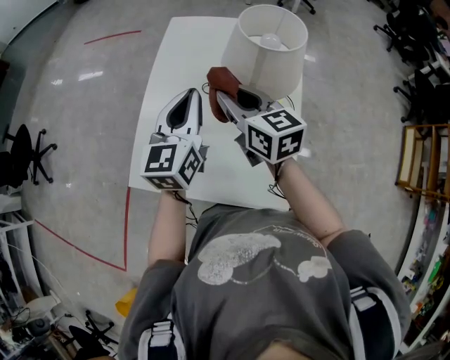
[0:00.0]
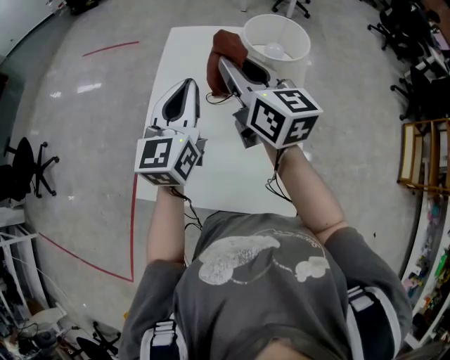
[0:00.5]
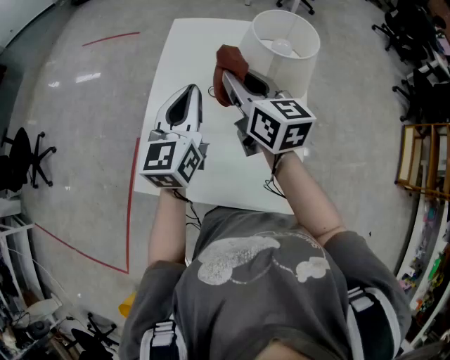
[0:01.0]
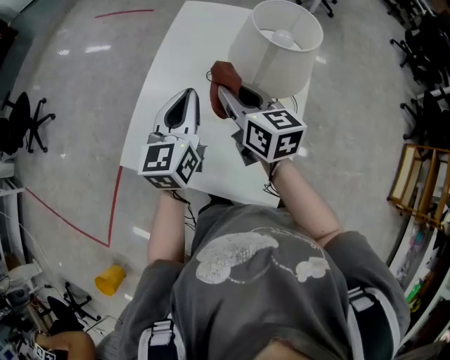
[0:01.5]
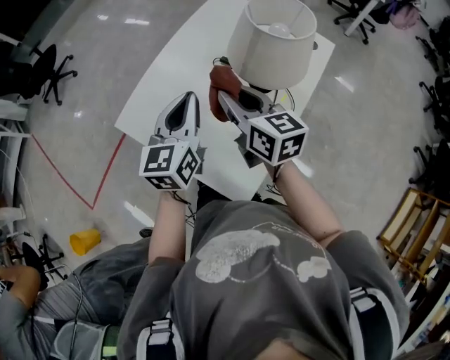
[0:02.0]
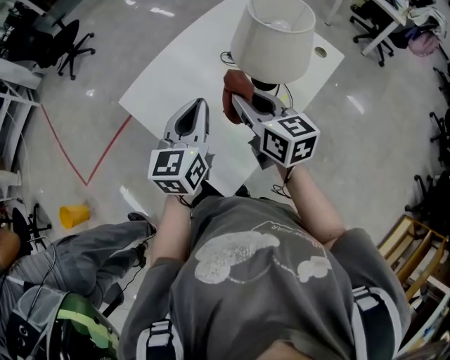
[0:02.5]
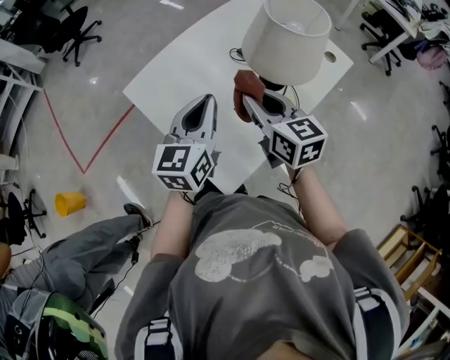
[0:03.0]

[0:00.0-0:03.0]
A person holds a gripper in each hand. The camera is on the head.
0:00.0 to 0:01.5: The right gripper goes upward and returns, some 10 cm each way.
0:01.5 to 0:03.0: The left gripper shifts by some 15 cm, and rotates about 20 degrees. Meanwhile the right gripper ends up about 10 cm from where it was, and rotates about 30 degrees.

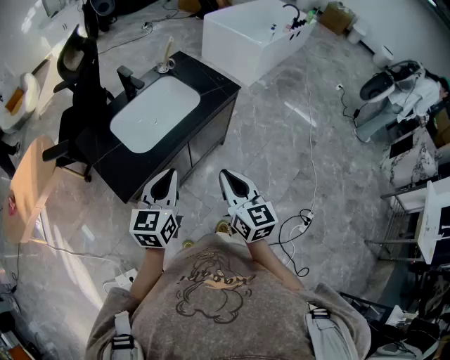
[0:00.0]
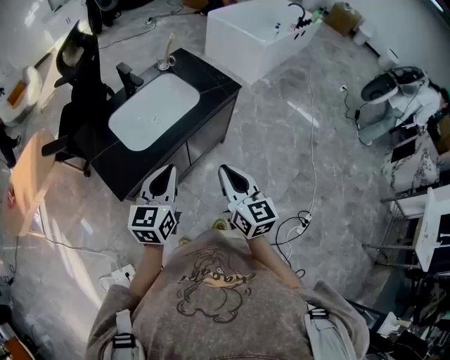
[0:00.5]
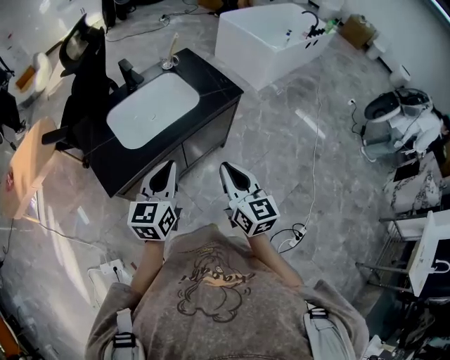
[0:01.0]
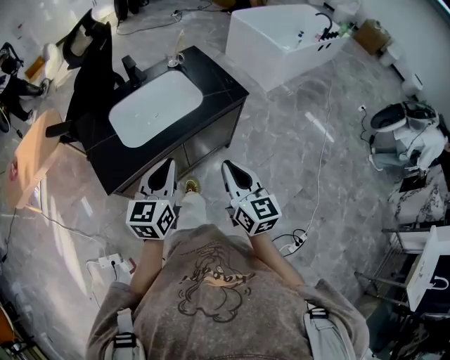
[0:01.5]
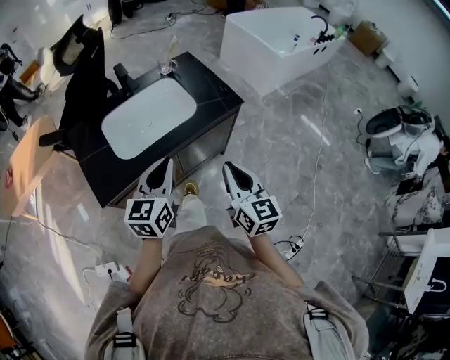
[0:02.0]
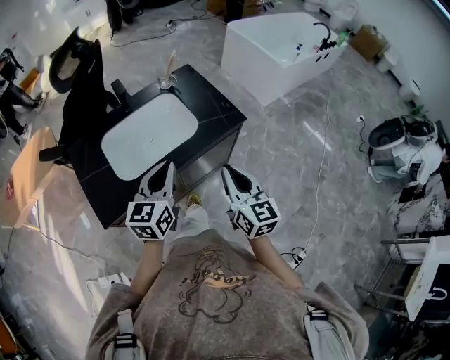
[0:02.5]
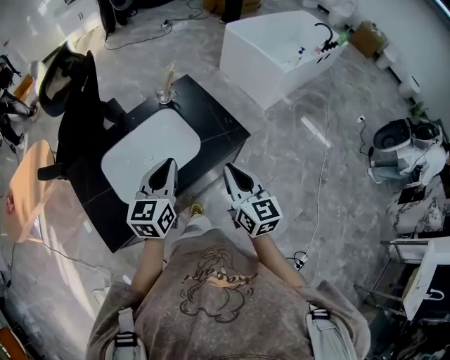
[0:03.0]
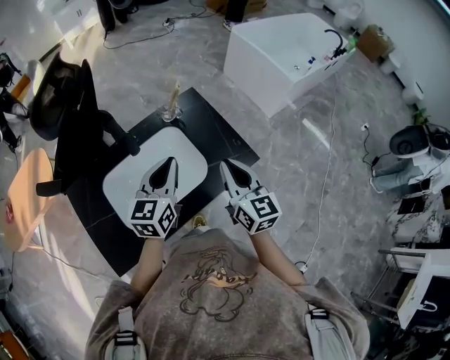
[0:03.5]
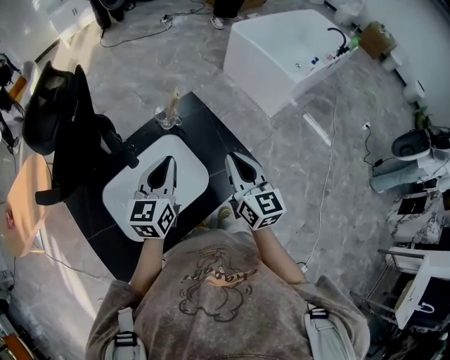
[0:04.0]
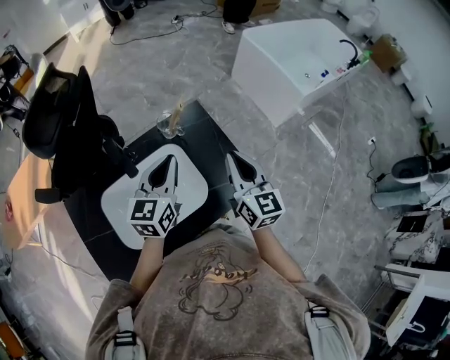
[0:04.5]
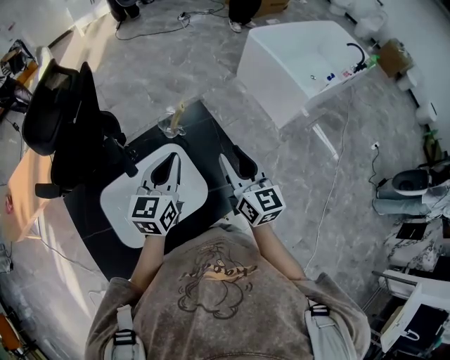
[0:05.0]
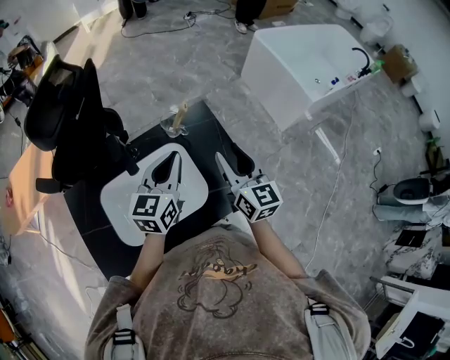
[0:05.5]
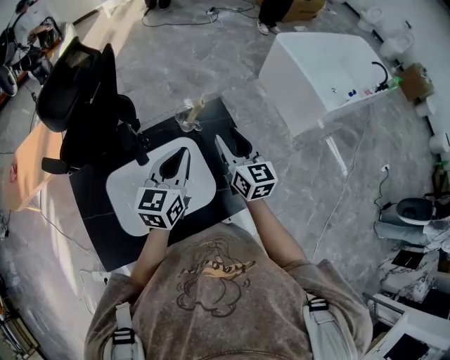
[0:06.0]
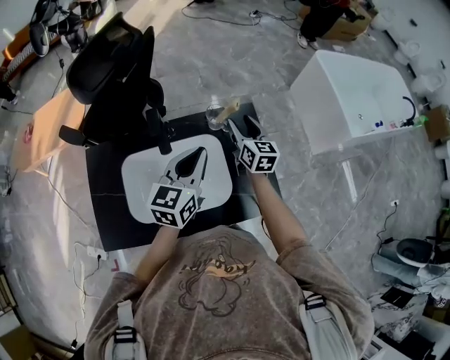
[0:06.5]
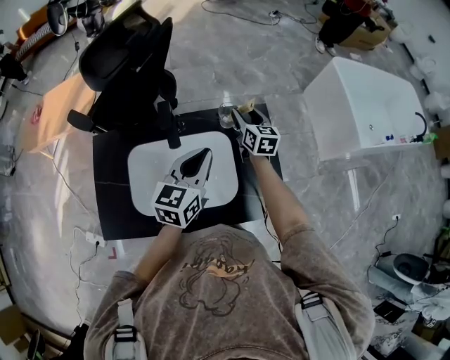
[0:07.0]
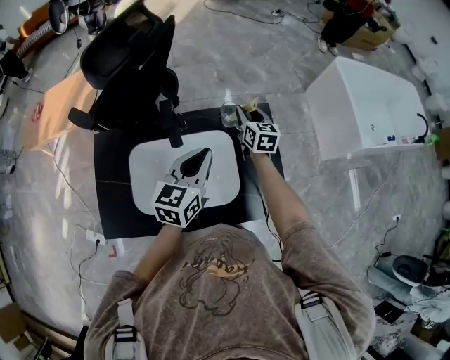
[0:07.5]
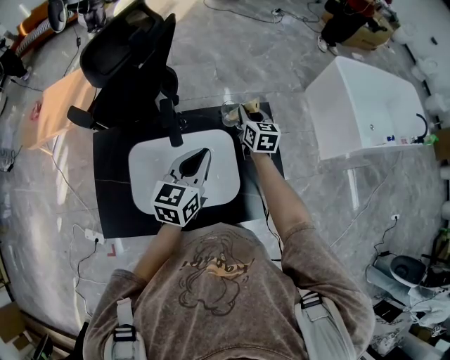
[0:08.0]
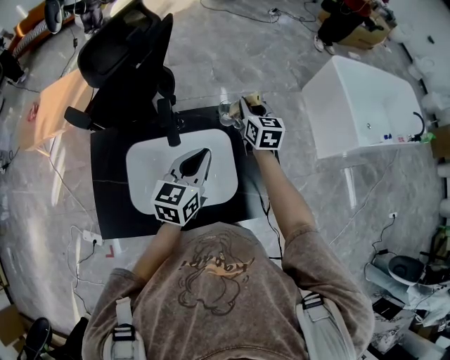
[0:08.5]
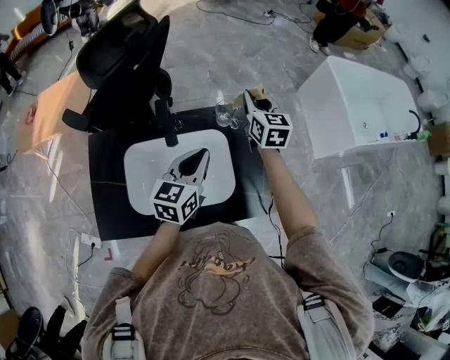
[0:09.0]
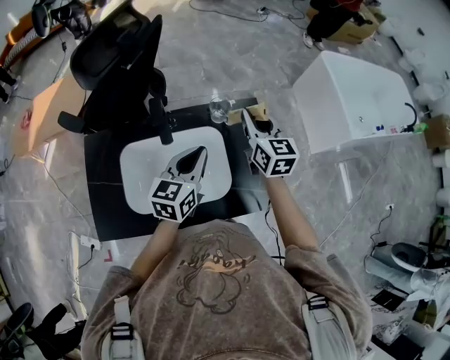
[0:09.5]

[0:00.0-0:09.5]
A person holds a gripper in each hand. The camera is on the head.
0:00.0 to 0:02.0: The two grippers go about 15 cm forward and to the right.
0:02.0 to 0:04.0: Both grippers travel together forward, about 35 cm.
0:04.0 to 0:05.5: The grippers both shift forward by roughly 10 cm. The right gripper opens up.
0:05.5 to 0:07.5: The left gripper heads to the left, covering approximately 5 cm. The right gripper shifts about 25 cm forward, downward and to the left, and swivels approximately 20 degrees.
0:07.5 to 0:09.5: The right gripper moves upward and backward, some 15 cm.

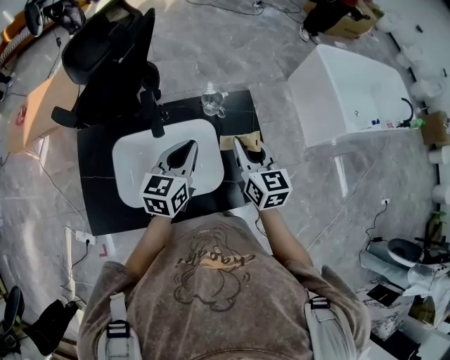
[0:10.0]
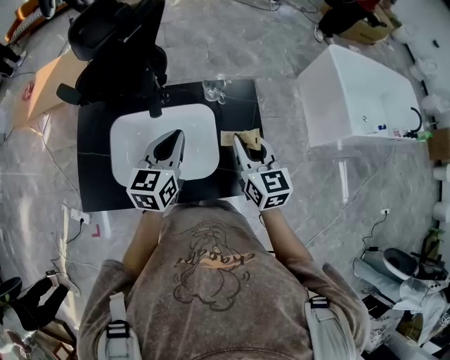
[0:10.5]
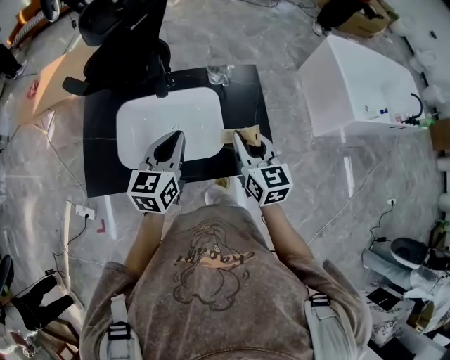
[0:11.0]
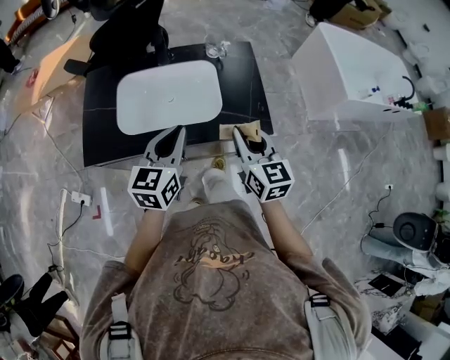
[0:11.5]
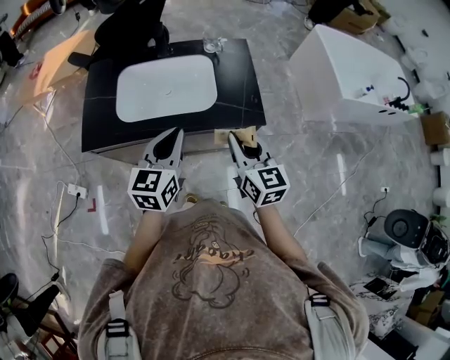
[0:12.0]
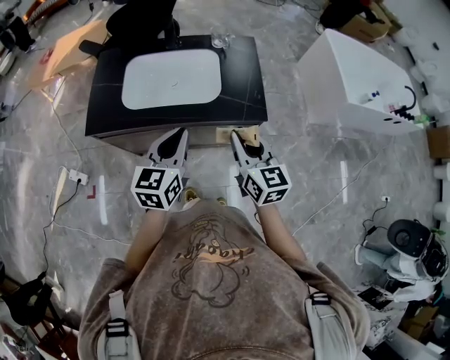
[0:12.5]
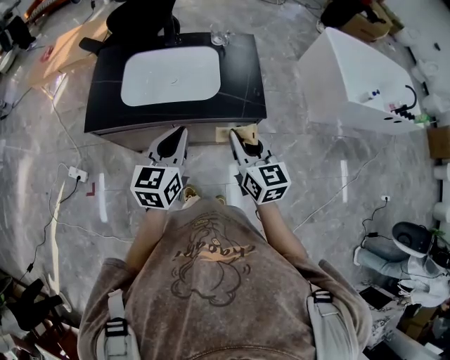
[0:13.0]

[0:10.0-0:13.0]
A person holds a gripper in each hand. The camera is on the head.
0:10.0 to 0:11.5: The grippers both shift backward by approximately 25 cm.
0:11.5 to 0:13.0: The grippers both shift backward by some 10 cm.

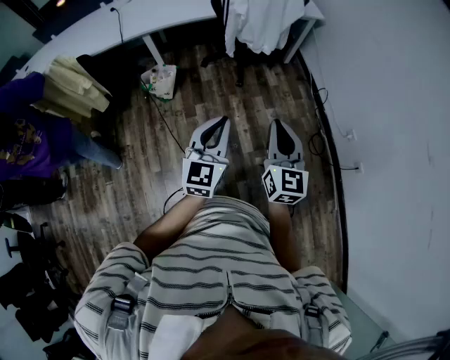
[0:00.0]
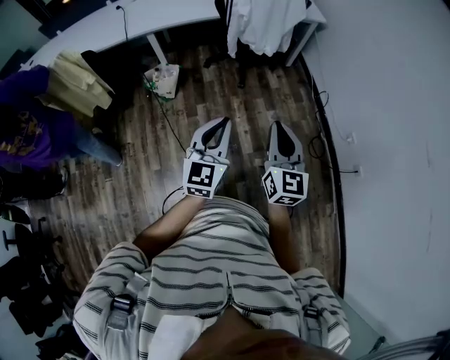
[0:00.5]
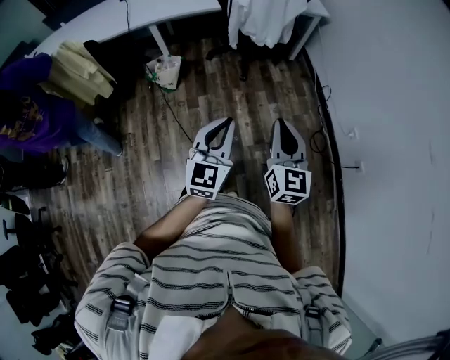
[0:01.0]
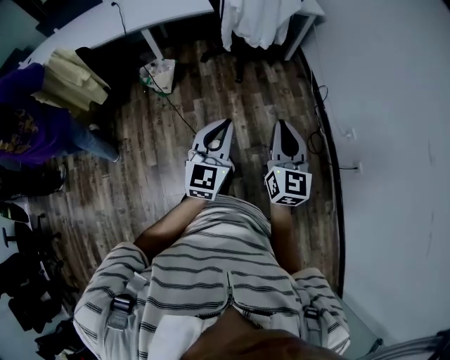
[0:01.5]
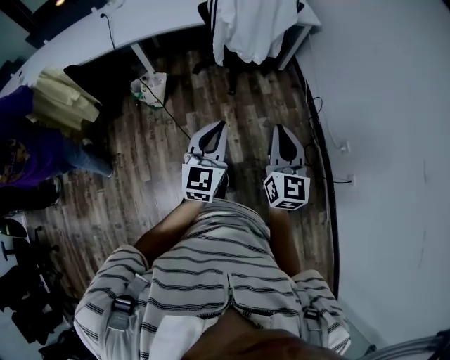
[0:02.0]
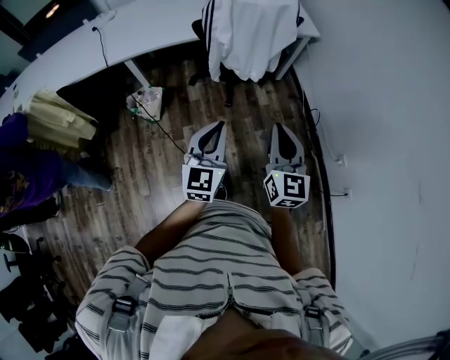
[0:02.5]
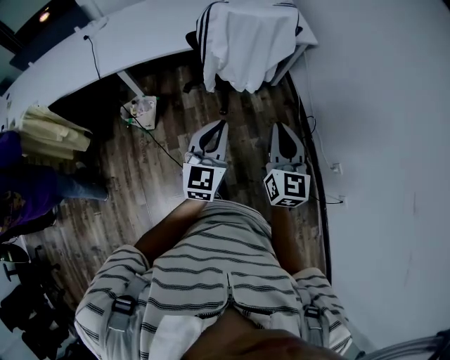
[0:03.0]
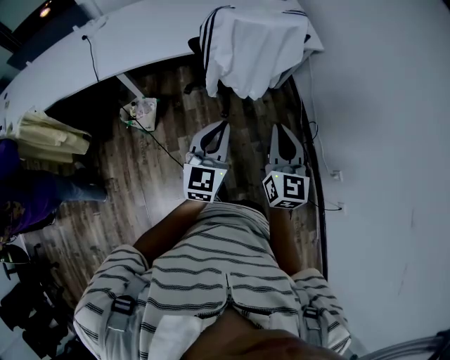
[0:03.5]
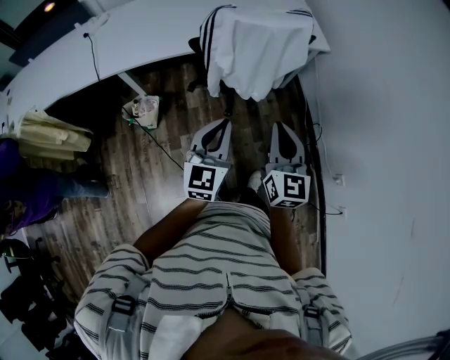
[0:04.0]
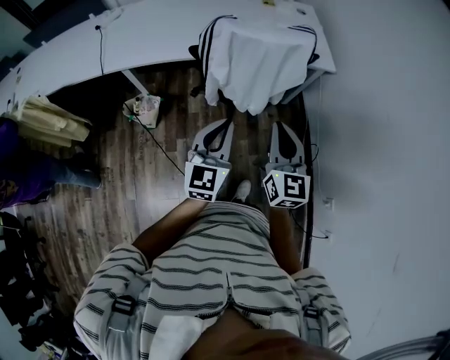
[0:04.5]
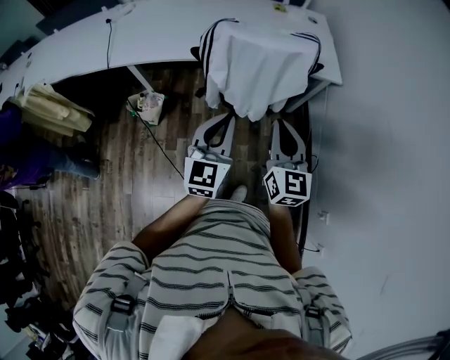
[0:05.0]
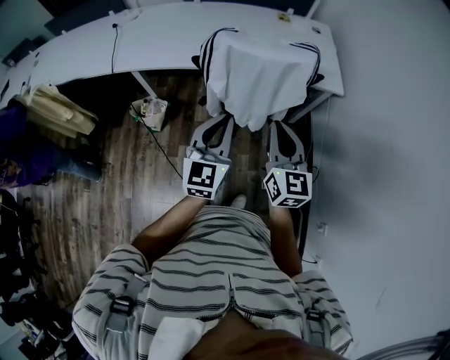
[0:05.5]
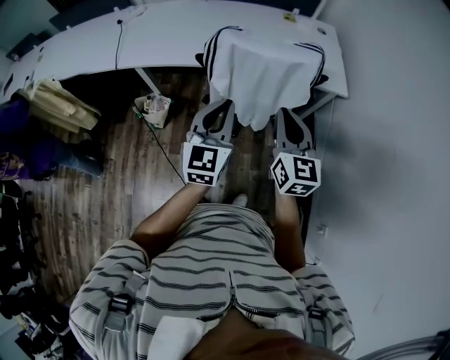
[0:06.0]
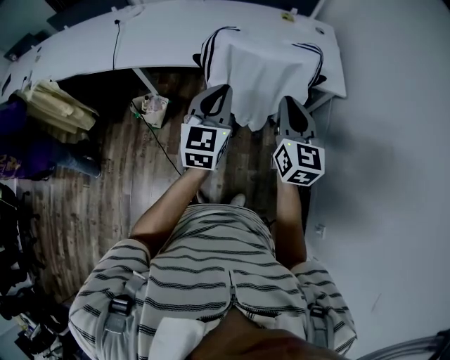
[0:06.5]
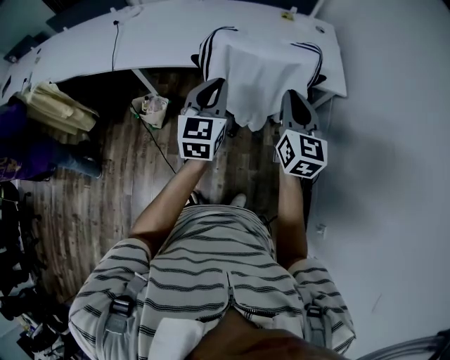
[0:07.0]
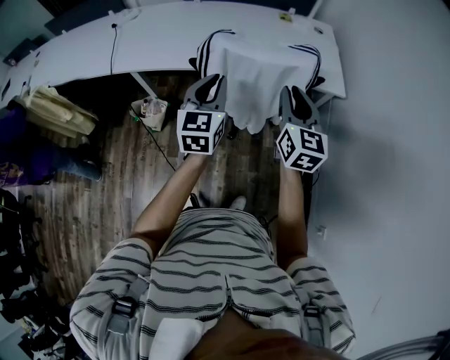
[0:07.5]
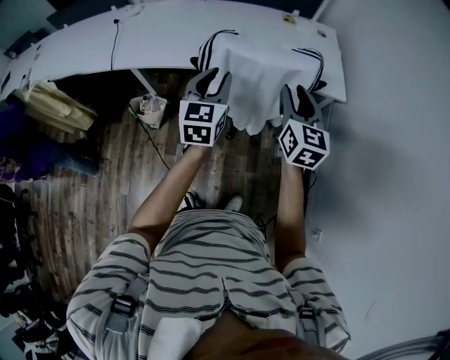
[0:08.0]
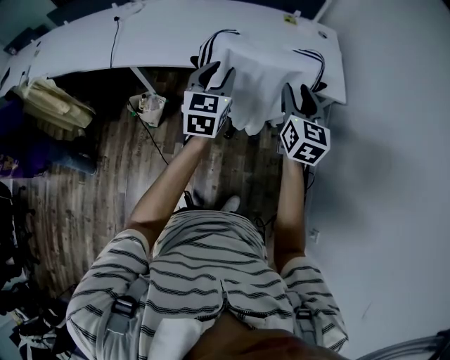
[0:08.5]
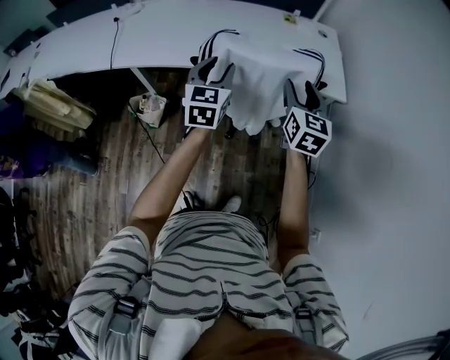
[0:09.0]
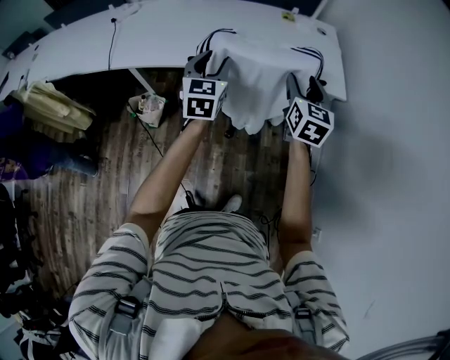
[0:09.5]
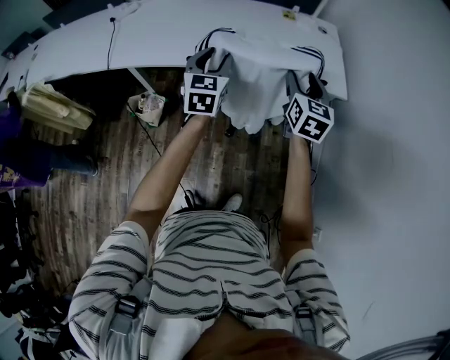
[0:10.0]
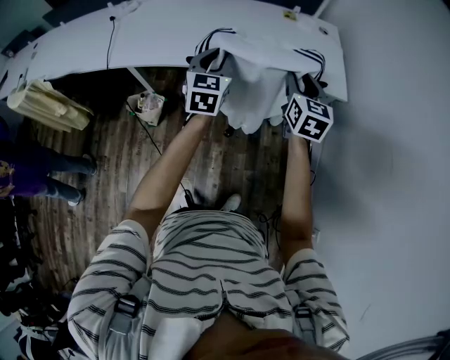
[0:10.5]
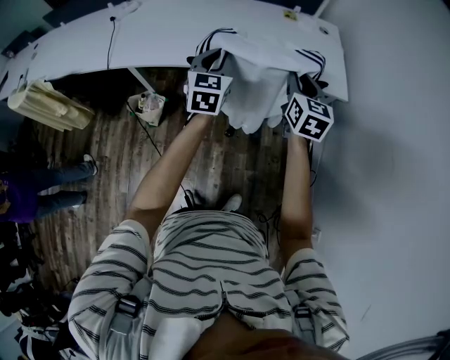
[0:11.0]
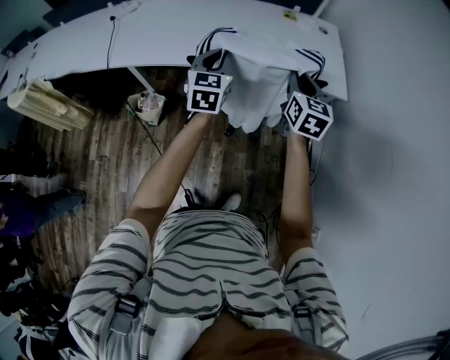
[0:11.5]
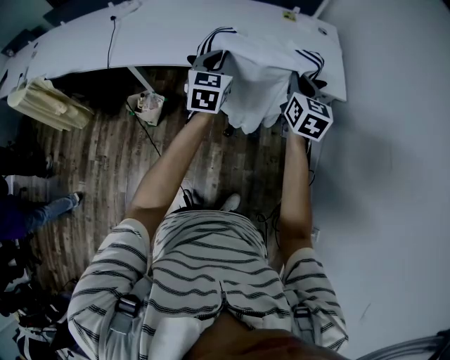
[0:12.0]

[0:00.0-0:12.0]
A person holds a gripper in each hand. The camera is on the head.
0:00.0 to 0:02.0: The right gripper goes some 10 cm forward and to the right, while the left gripper shifts about 10 cm forward.
0:02.0 to 0:04.0: The two grippers go roughly 30 cm forward.
0:04.0 to 0:06.0: The grippers both shift forward and to the right by approximately 15 cm.
0:06.0 to 0:08.0: The two grippers go about 10 cm forward. The right gripper opens its fingers.
0:08.0 to 0:10.0: The grippers both shift forward by roughly 10 cm. The right gripper opens its fingers.
0:10.0 to 0:12.0: The right gripper closes. The left gripper closes up.
